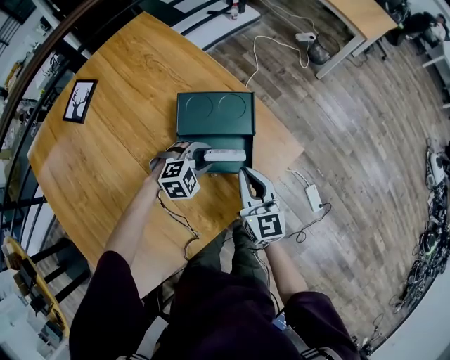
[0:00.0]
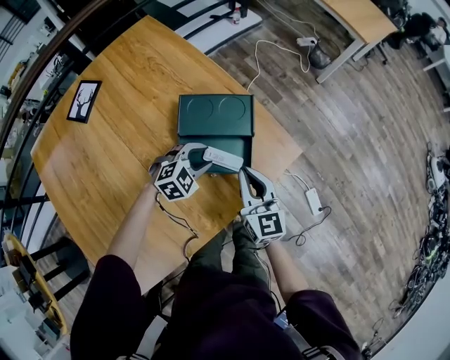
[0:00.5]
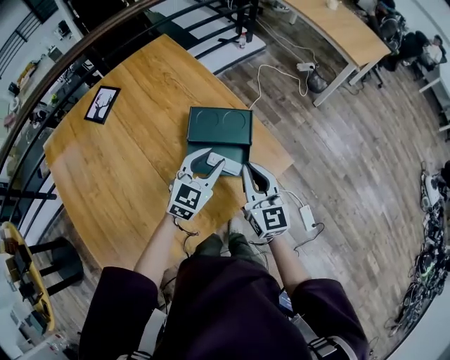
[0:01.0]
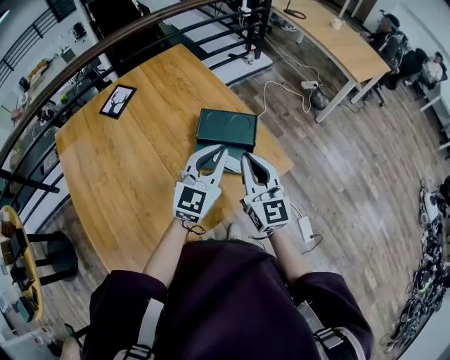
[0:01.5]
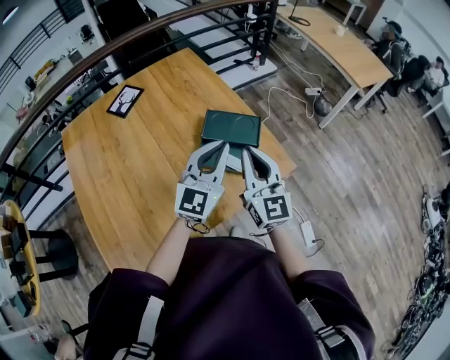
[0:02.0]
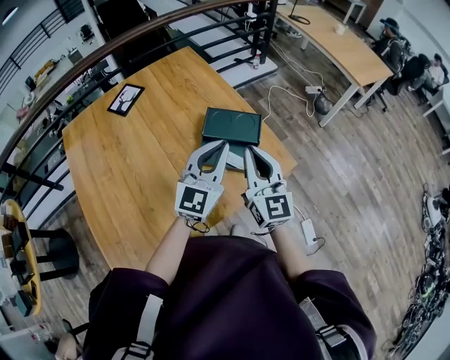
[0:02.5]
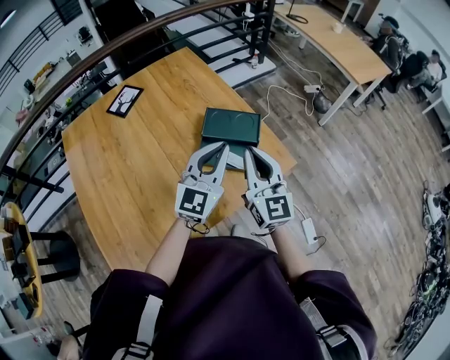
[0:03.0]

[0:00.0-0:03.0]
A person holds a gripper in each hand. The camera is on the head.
0:00.0 to 0:01.5: The right gripper moves upward, some 20 cm. The left gripper shifts about 30 cm upward, tips its fingers upward by roughly 50 degrees, and closes up.
0:01.5 to 0:03.0: The grippers move only a little.

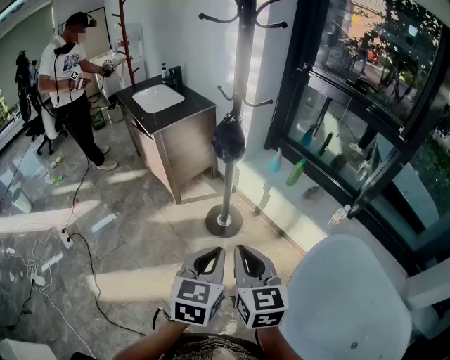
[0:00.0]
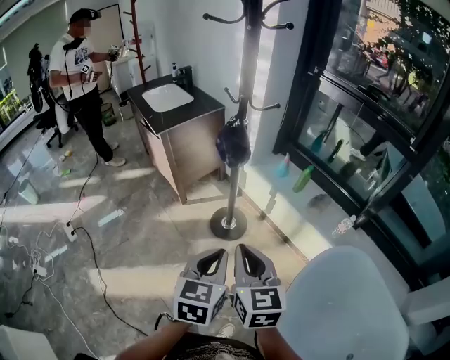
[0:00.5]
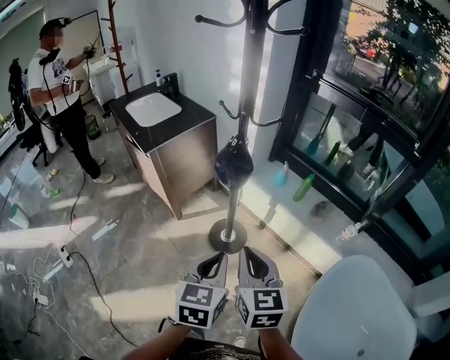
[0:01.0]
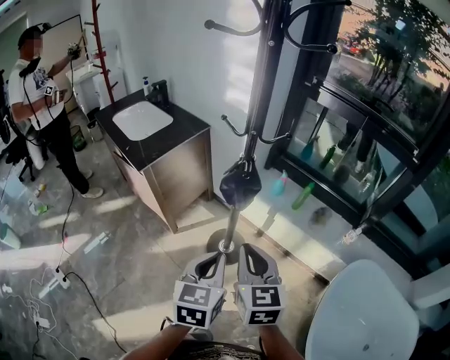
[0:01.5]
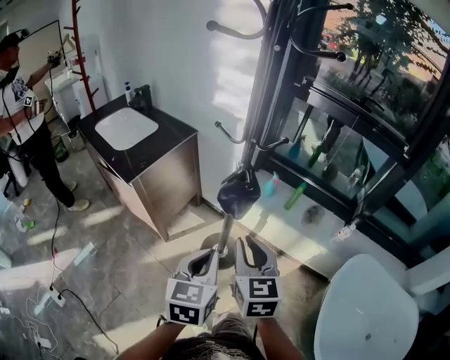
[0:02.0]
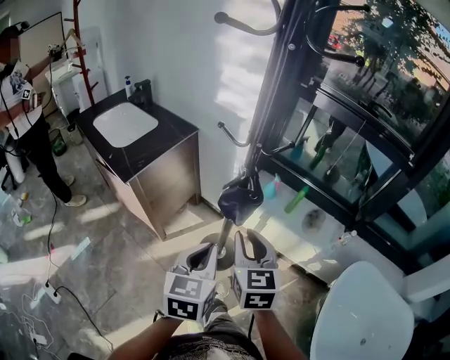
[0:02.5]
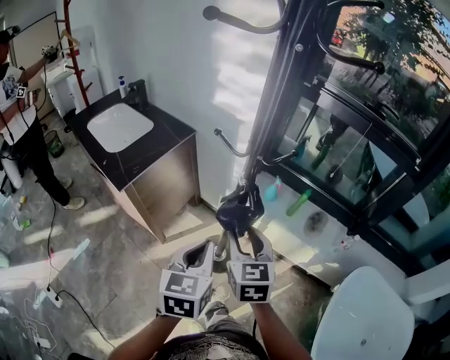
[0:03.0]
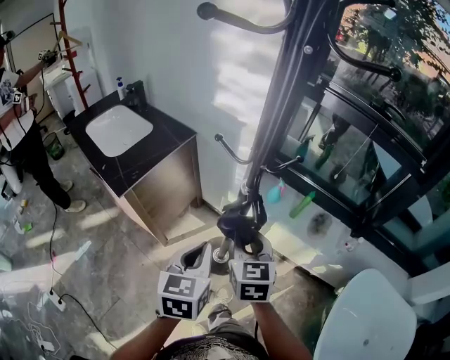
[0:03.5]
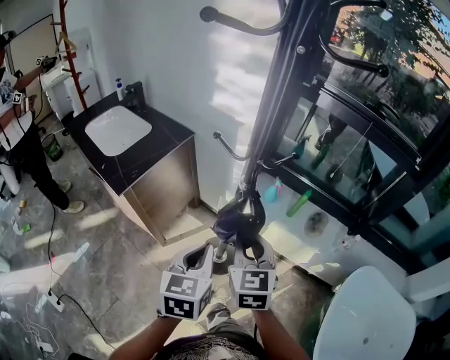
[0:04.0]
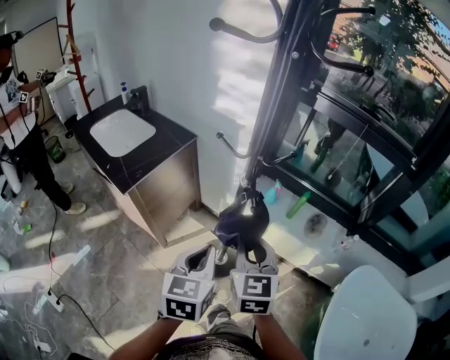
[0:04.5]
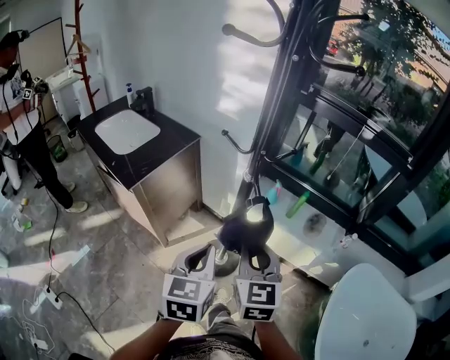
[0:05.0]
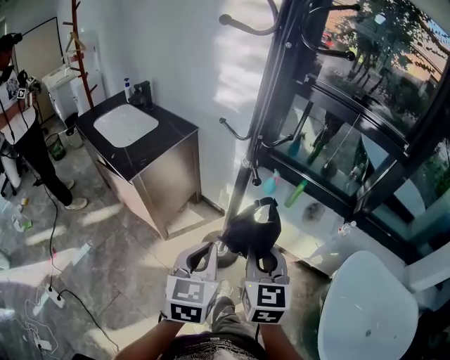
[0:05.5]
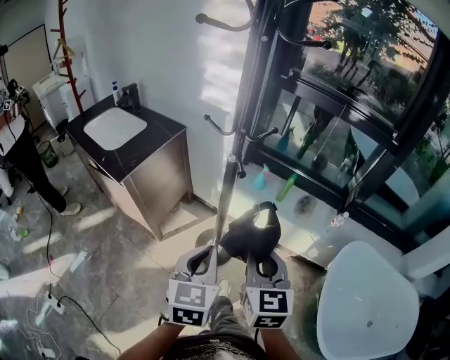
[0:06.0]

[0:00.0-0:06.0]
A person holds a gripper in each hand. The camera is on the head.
0:00.0 to 0:02.0: The two grippers go approximately 25 cm forward and to the left.
0:02.0 to 0:04.0: The two grippers go roughly 10 cm forward. The right gripper opens and closes again.
0:04.0 to 0:06.0: The two grippers go approximately 15 cm backward.

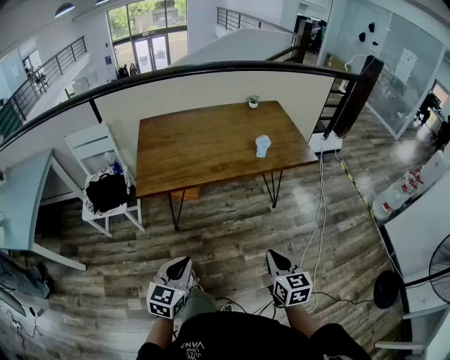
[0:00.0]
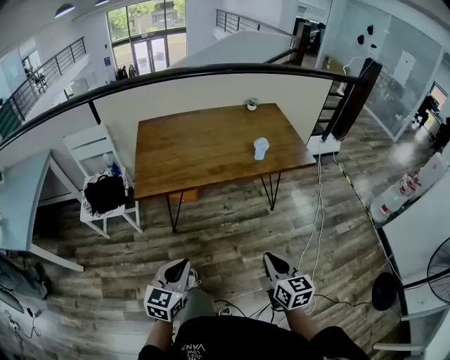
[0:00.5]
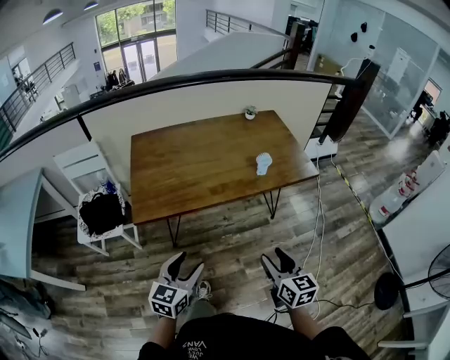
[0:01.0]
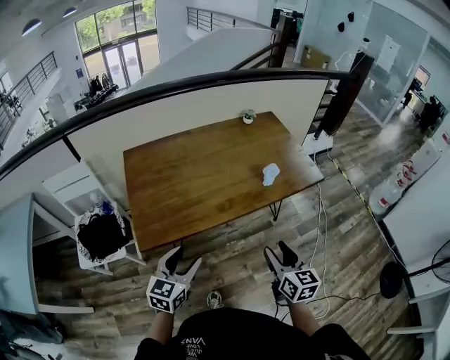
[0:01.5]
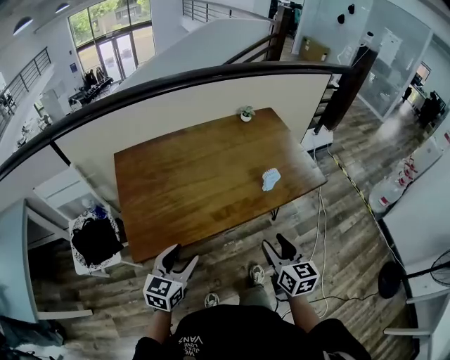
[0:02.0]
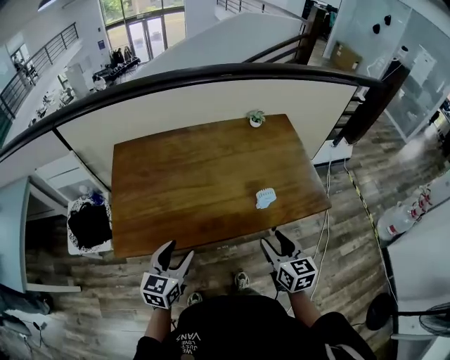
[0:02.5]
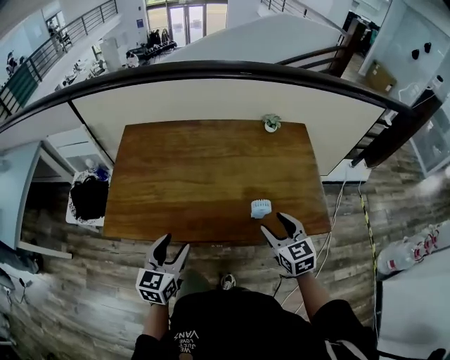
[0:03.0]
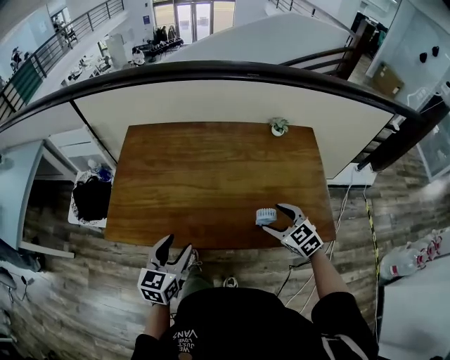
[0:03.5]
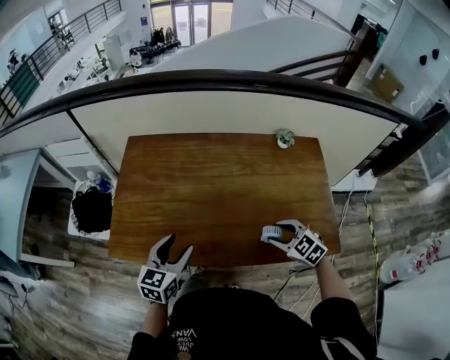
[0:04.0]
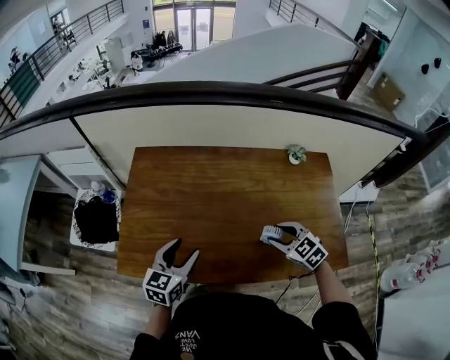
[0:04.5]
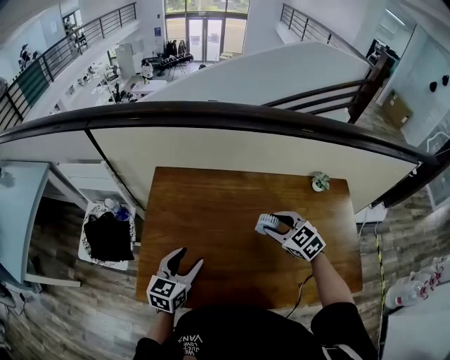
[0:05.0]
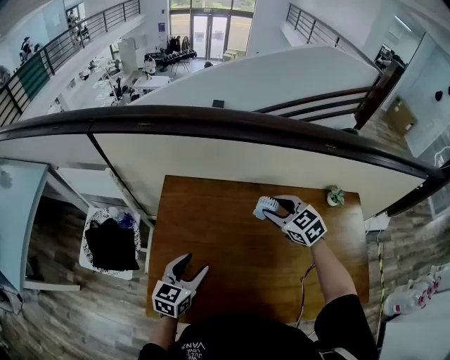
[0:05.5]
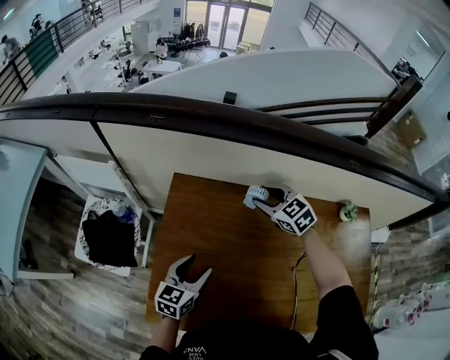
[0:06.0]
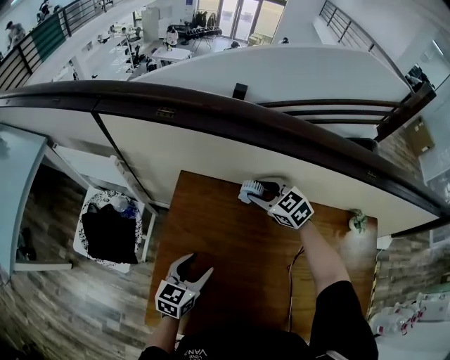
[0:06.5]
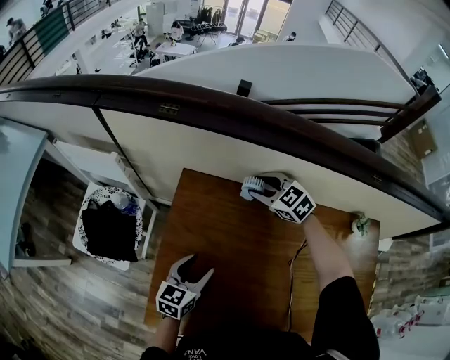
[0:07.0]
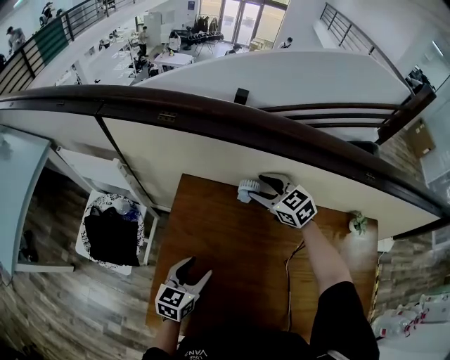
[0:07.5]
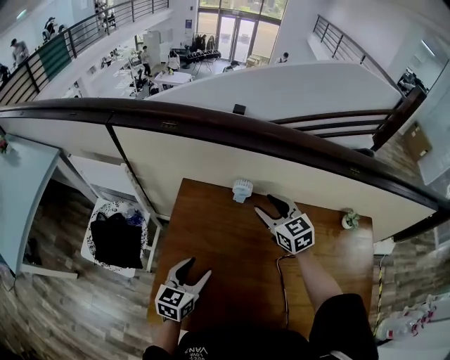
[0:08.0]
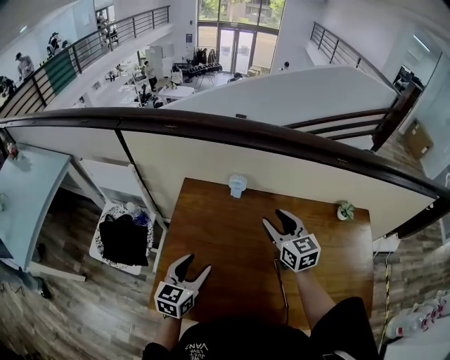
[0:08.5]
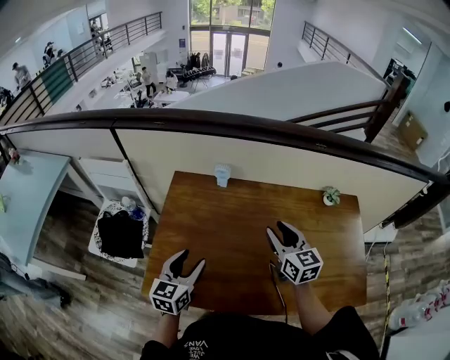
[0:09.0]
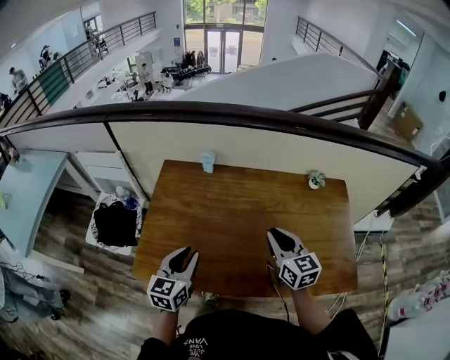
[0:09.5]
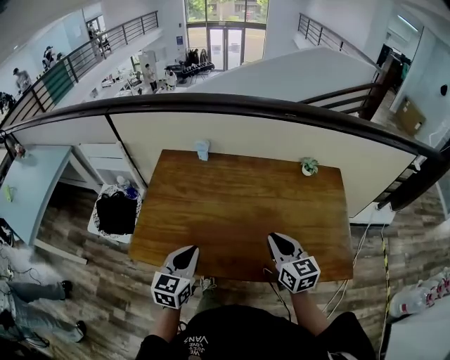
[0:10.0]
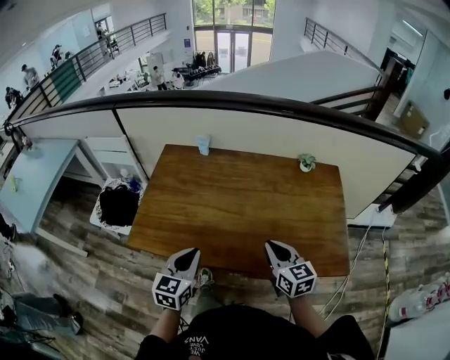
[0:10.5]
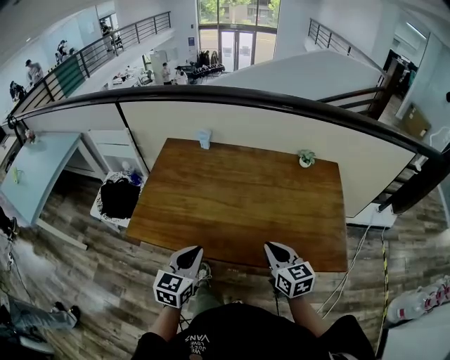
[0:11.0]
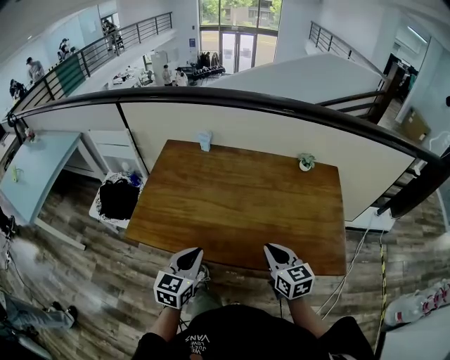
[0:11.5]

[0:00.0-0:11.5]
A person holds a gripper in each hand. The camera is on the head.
0:00.0 to 0:02.0: The grippers both shift forward by some 30 cm. The right gripper opens, while the left gripper opens up.
0:02.0 to 0:04.0: The left gripper ends up approximately 15 cm from where it was, and swivels approximately 20 degrees. The right gripper changes place by roughly 30 cm, and swivels approximately 70 degrees.
0:04.0 to 0:06.0: The left gripper shifts some 25 cm forward and to the left. Meanwhile the right gripper travels forward and to the left by some 50 cm.
0:06.0 to 0:07.5: The right gripper shifts some 5 cm forward.
0:07.5 to 0:09.5: The right gripper heads backward and to the right, covering about 40 cm, rotates about 40 degrees, and closes, while the left gripper is displaced backward, upward and to the right by roughly 25 cm, and closes its fingers.
0:09.5 to 0:11.5: The left gripper goes about 15 cm backward and to the right, and closes up; the right gripper travels backward by some 15 cm.

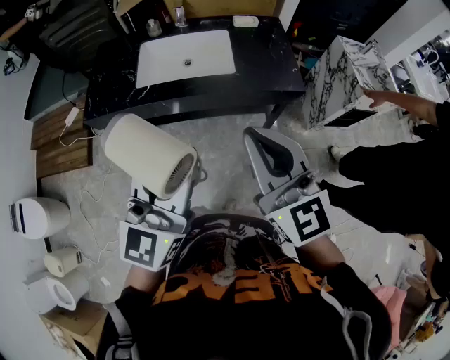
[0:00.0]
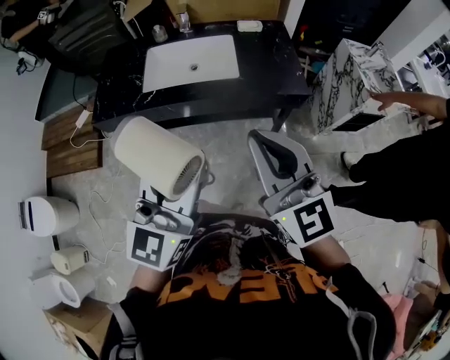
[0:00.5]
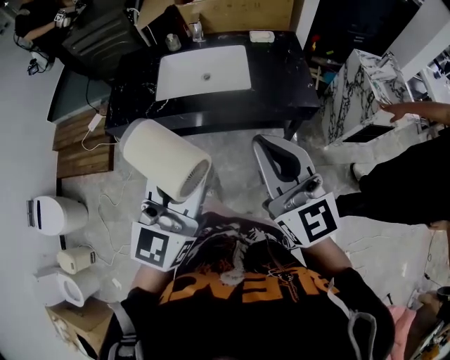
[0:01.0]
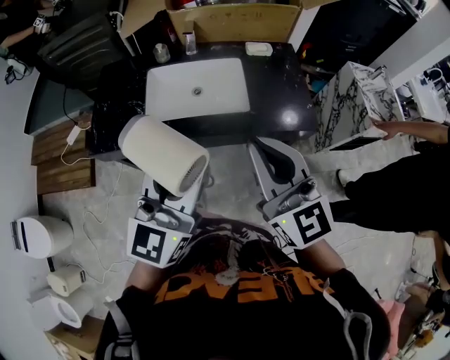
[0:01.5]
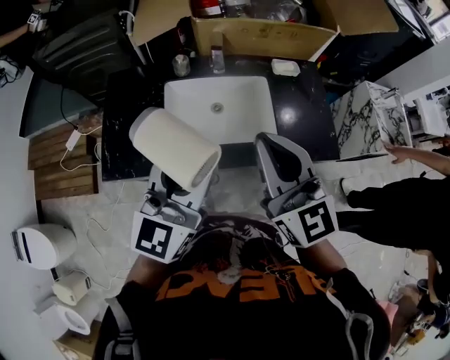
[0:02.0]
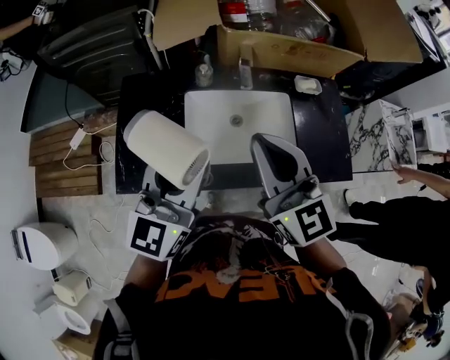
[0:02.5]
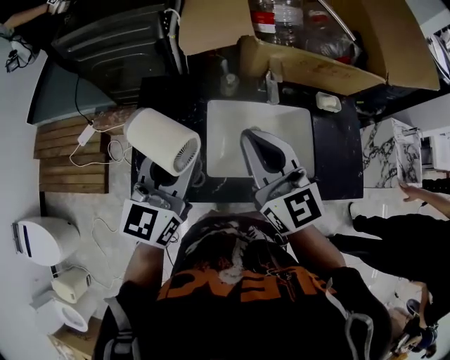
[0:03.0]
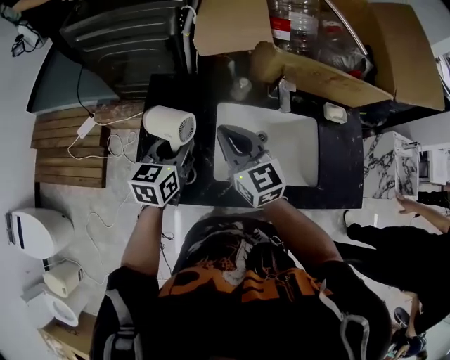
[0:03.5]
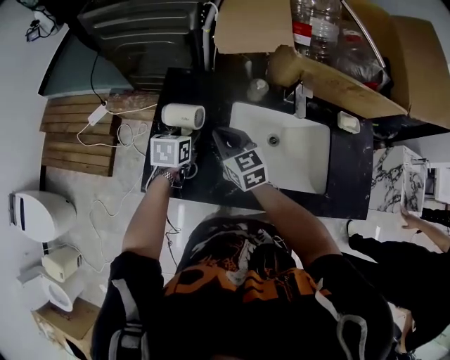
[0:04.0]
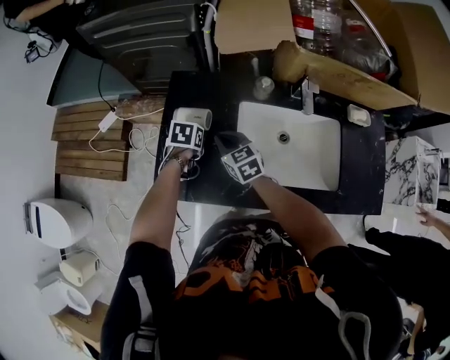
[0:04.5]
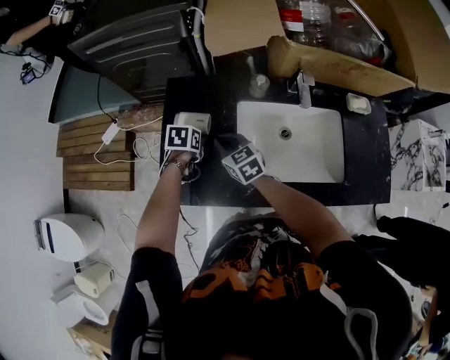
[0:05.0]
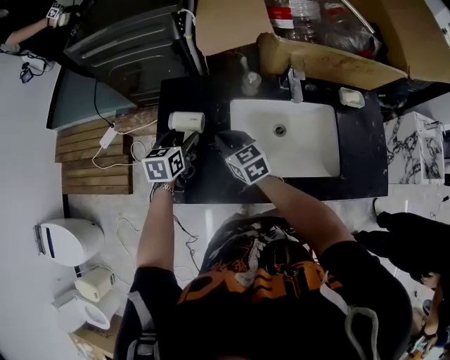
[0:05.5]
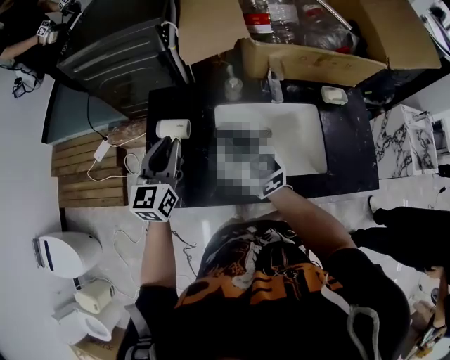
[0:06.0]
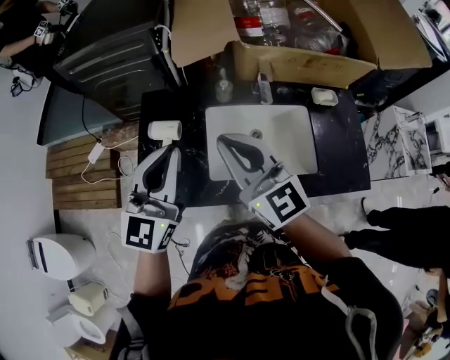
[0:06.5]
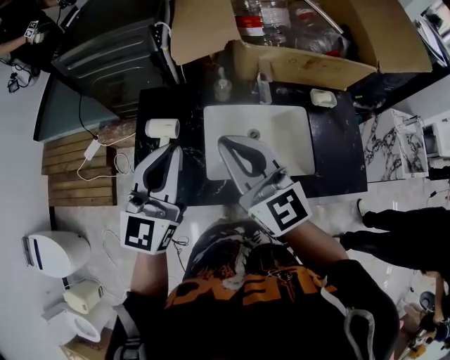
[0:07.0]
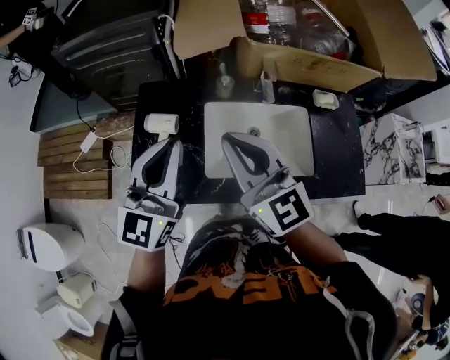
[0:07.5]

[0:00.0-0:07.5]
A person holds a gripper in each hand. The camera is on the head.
0:00.0 to 0:02.0: The two grippers go approximately 35 cm forward and to the left.
0:02.0 to 0:04.0: The right gripper heads to the left, downward and forward, covering about 50 cm, and changes its angle by approximately 30 degrees; the left gripper heads downward, to the left and forward, covering about 50 cm, and tips its fingers downward by some 50 degrees.
0:04.0 to 0:05.5: The left gripper travels downward and back again, about 5 cm each way, and opens its fingers.
0:05.5 to 0:07.5: The right gripper heads upward, covering about 30 cm, and tips its fingers upward by roughly 30 degrees; the left gripper goes about 30 cm upward and backward, angles its fingers upward, by about 40 degrees, and closes its fingers.
